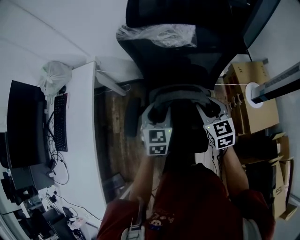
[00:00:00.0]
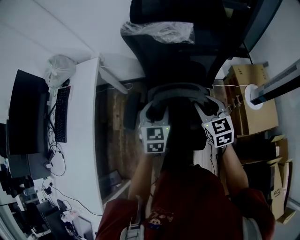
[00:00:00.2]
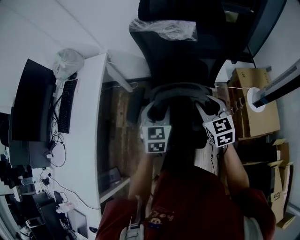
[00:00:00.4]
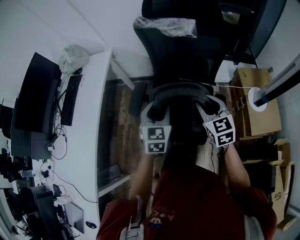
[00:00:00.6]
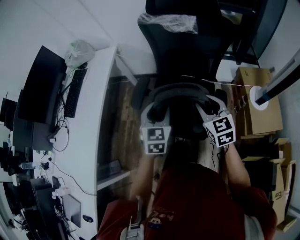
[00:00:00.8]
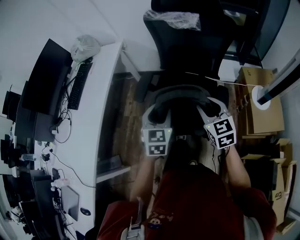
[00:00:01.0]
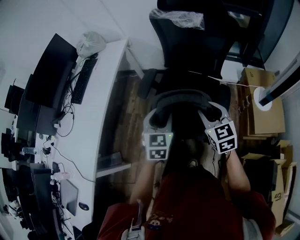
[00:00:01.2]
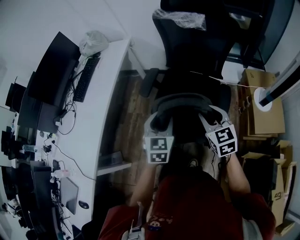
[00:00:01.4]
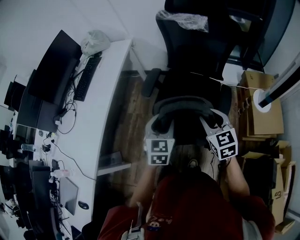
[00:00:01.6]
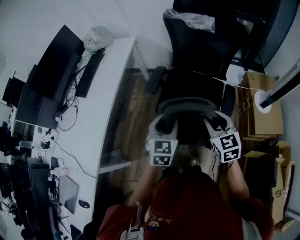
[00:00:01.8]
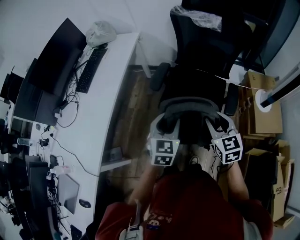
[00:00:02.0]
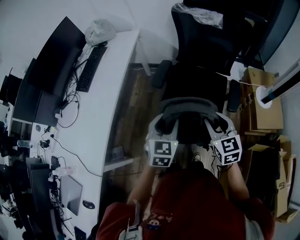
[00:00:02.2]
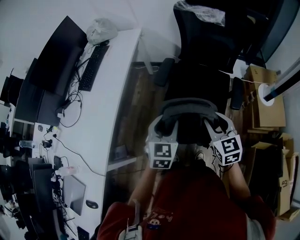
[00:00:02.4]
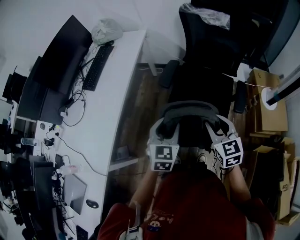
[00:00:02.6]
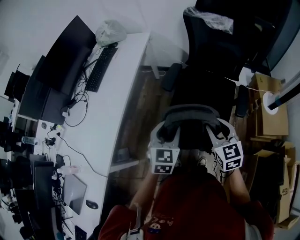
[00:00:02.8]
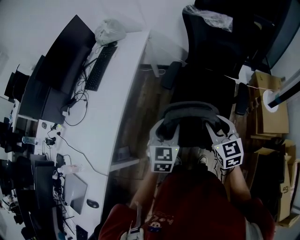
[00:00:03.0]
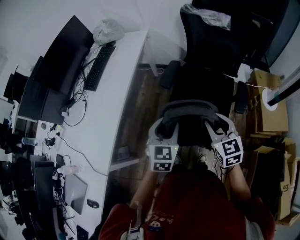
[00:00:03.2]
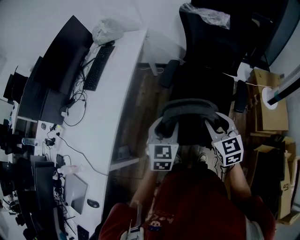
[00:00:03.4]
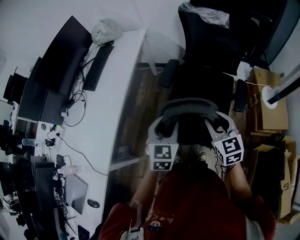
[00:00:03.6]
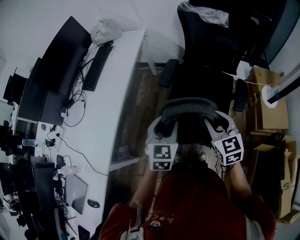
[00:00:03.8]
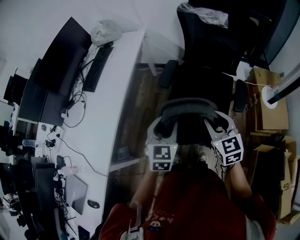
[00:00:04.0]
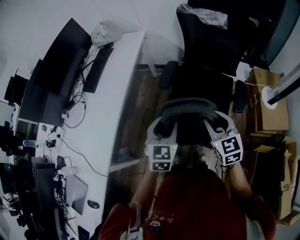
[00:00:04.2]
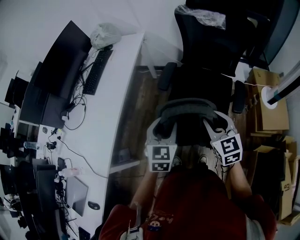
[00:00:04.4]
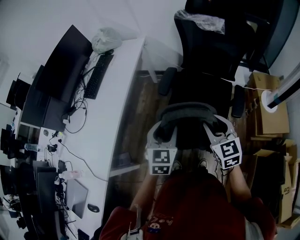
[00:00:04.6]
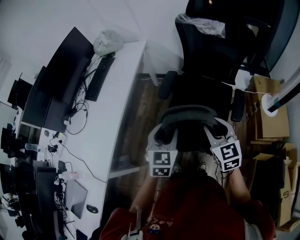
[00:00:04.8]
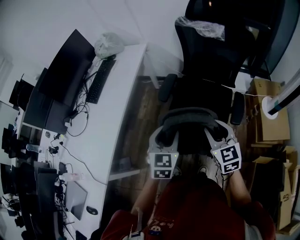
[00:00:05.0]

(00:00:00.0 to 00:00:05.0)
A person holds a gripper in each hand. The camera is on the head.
00:00:00.0 - 00:00:01.6: Both grippers move backward, approximately 35 cm.
00:00:01.6 - 00:00:03.4: Both grippers travel together to the left, roughly 15 cm.
00:00:03.4 - 00:00:05.0: The left gripper shifts by approximately 5 cm; the right gripper shifts by approximately 5 cm.

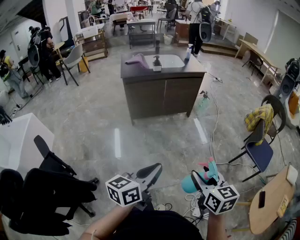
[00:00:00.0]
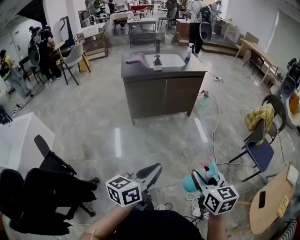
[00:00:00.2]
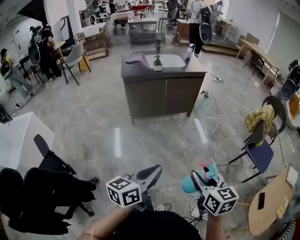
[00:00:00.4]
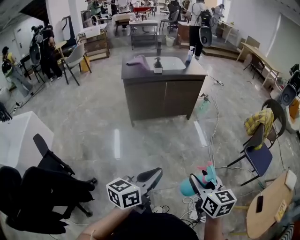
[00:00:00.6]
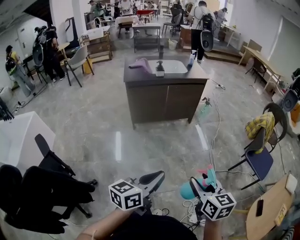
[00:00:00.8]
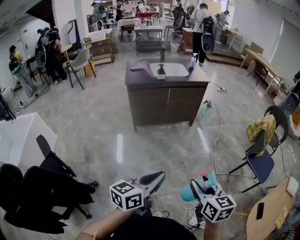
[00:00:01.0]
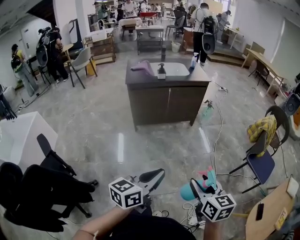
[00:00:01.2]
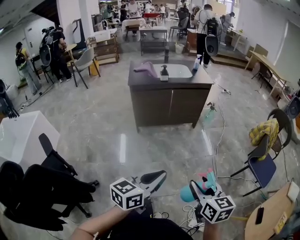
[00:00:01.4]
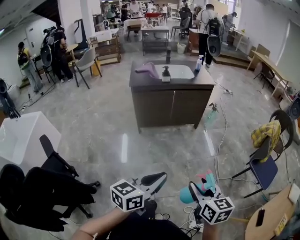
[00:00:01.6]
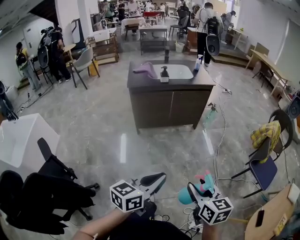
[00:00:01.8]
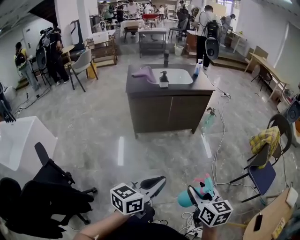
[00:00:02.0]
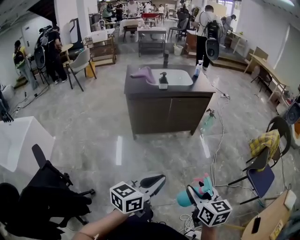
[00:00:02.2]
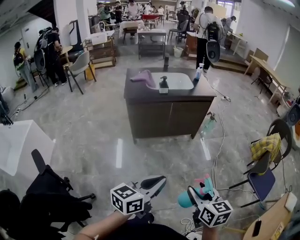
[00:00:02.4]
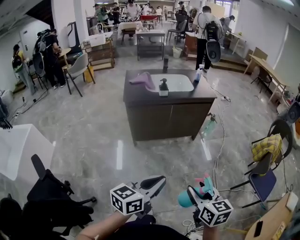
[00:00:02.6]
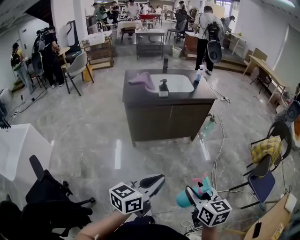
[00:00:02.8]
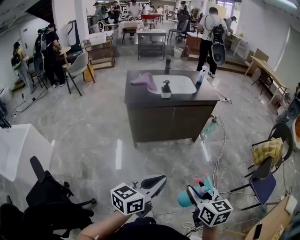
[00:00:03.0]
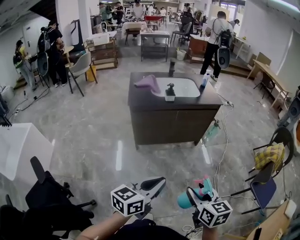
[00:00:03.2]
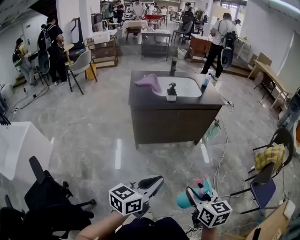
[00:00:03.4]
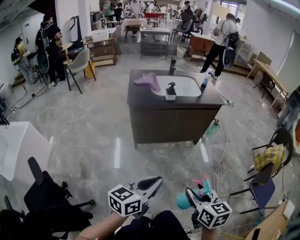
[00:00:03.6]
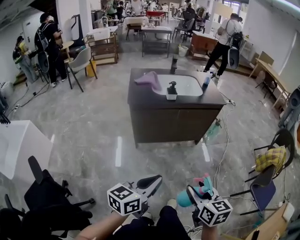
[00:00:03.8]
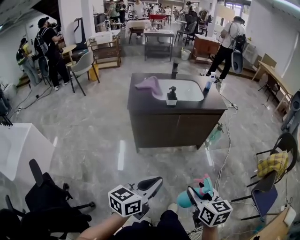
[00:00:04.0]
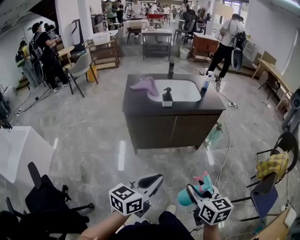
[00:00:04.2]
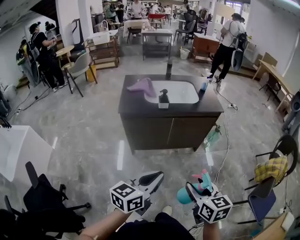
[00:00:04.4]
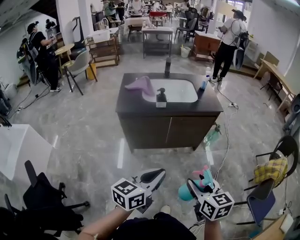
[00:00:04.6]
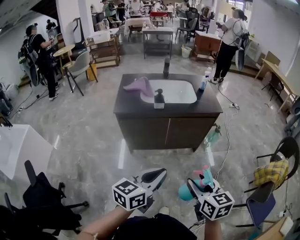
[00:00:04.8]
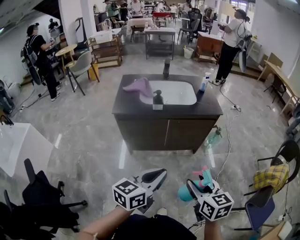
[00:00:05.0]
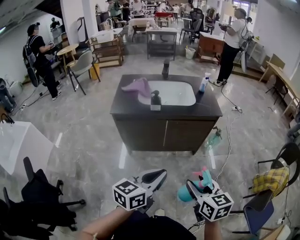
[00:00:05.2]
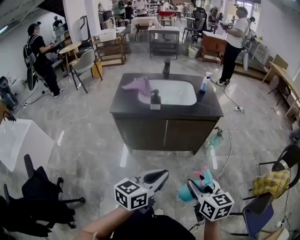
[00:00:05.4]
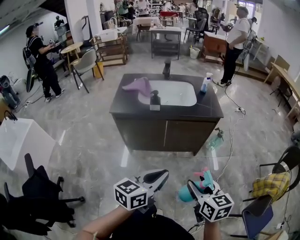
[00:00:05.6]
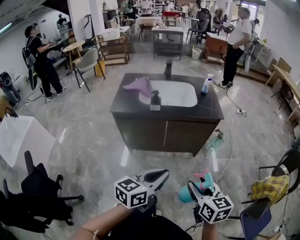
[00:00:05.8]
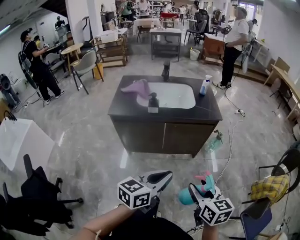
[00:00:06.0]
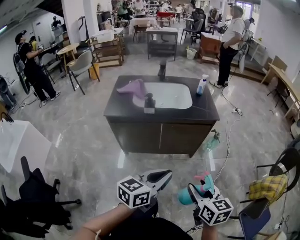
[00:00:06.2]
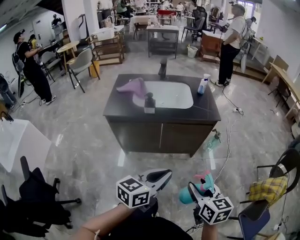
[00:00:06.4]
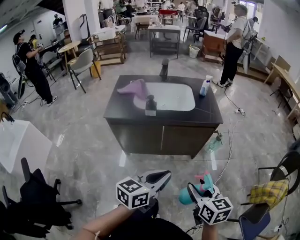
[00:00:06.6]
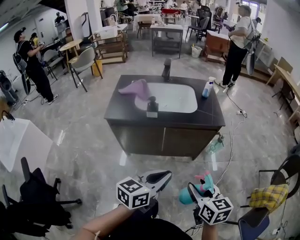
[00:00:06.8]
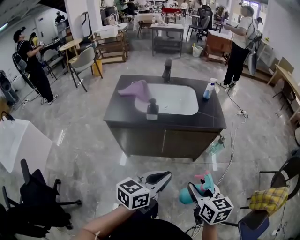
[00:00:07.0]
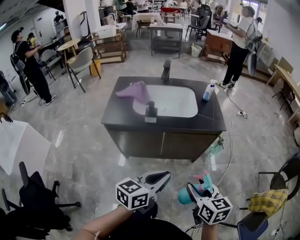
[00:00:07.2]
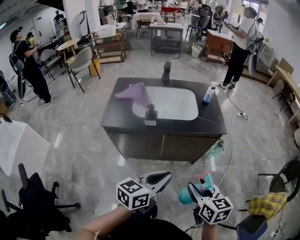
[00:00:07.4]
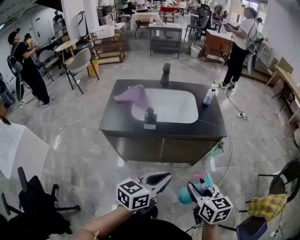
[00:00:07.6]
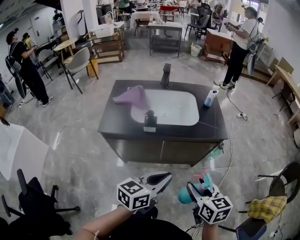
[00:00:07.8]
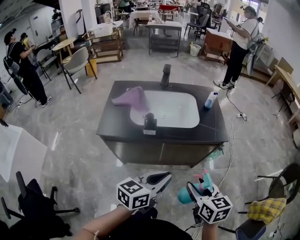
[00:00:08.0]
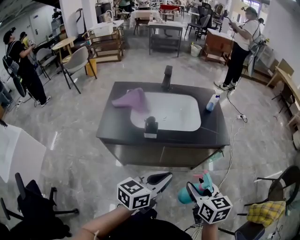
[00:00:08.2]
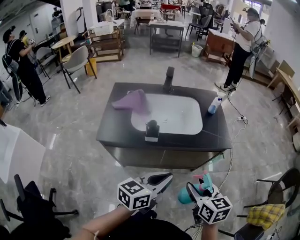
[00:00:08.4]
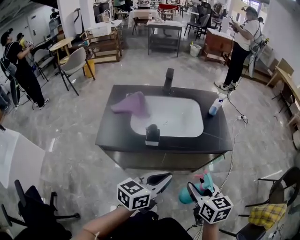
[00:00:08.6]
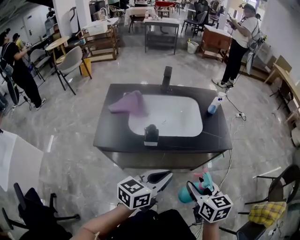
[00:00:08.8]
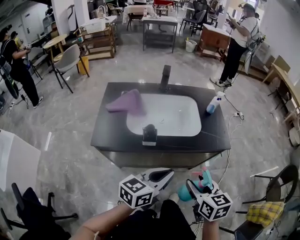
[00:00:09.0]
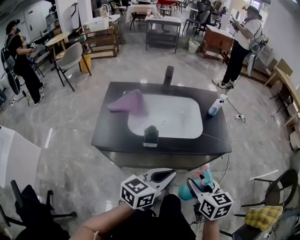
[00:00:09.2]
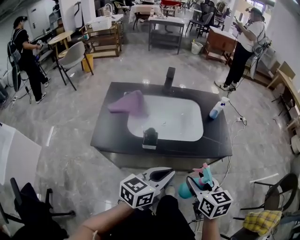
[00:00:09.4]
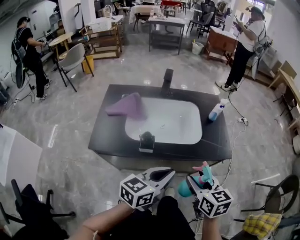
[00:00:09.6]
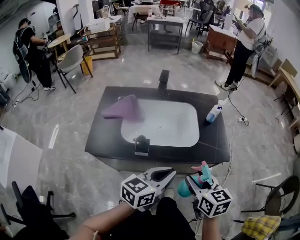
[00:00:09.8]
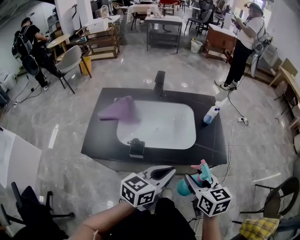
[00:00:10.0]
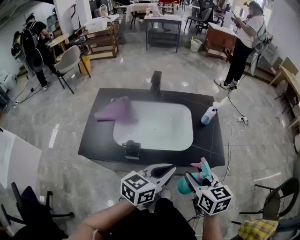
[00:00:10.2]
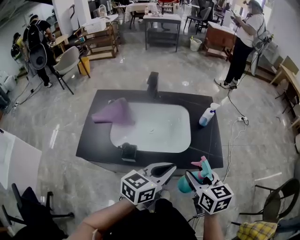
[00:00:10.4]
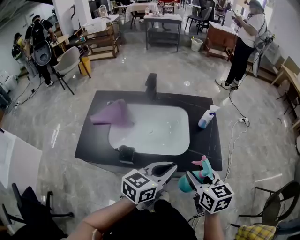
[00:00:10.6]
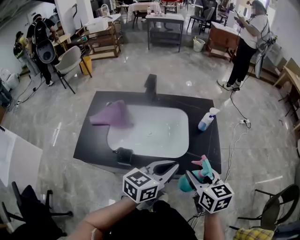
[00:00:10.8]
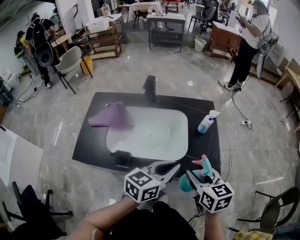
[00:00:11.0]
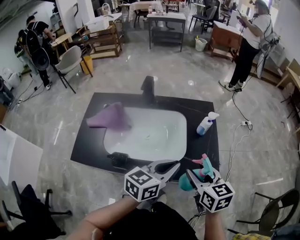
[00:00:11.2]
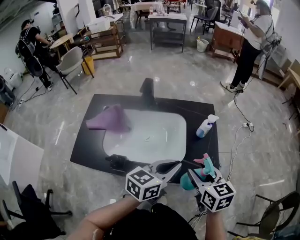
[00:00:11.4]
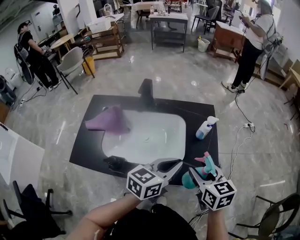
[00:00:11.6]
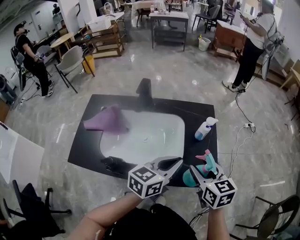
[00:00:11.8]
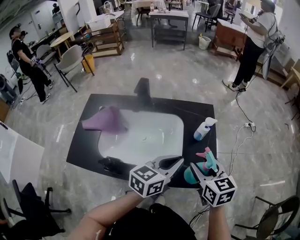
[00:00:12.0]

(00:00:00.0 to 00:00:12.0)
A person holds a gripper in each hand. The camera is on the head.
00:00:00.0 - 00:00:01.6: There are only small adjustments of the grippers.
00:00:01.6 - 00:00:03.0: Both grippers move forward and to the left, roughly 20 cm.
00:00:03.0 - 00:00:04.4: Both grippers move forward, about 15 cm.
00:00:04.4 - 00:00:06.0: Both grippers move to the right and forward, roughly 15 cm.
00:00:06.0 - 00:00:07.6: Both grippers travel together forward, some 15 cm.
00:00:07.6 - 00:00:09.0: Both grippers move forward and to the left, roughly 15 cm.
00:00:09.0 - 00:00:10.4: The right gripper travels forward by roughly 15 cm, while the left gripper is displaced forward and to the right by roughly 15 cm.
00:00:10.4 - 00:00:12.0: The left gripper heads forward and to the right, covering about 15 cm; the right gripper shifts about 15 cm forward.

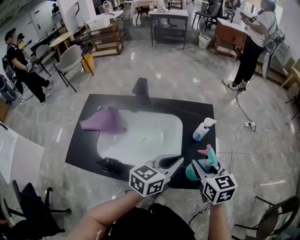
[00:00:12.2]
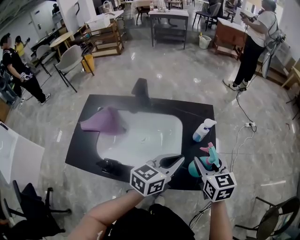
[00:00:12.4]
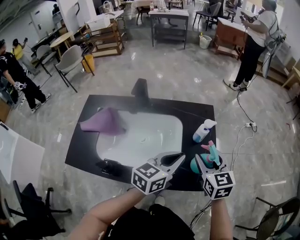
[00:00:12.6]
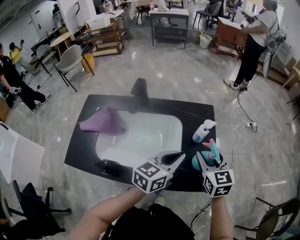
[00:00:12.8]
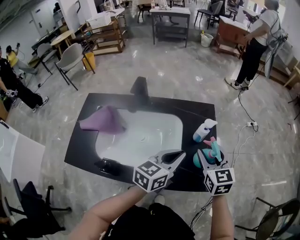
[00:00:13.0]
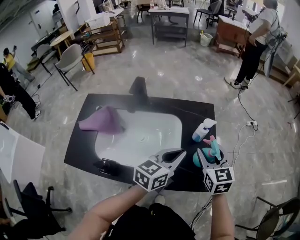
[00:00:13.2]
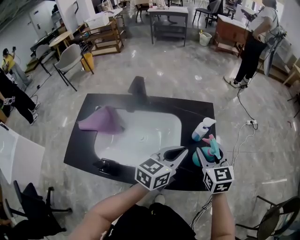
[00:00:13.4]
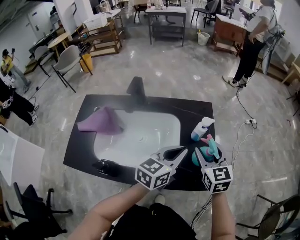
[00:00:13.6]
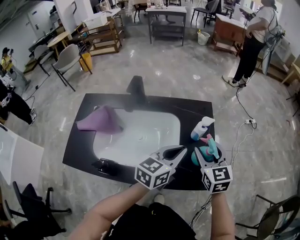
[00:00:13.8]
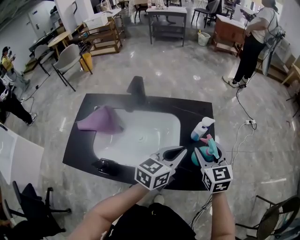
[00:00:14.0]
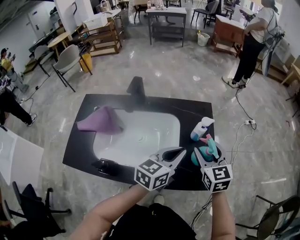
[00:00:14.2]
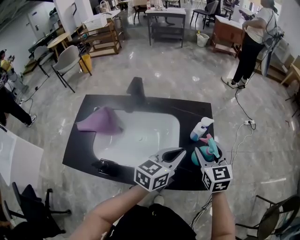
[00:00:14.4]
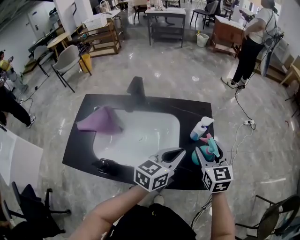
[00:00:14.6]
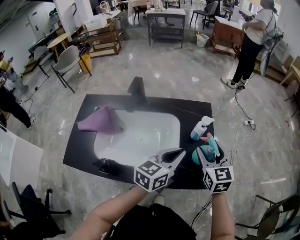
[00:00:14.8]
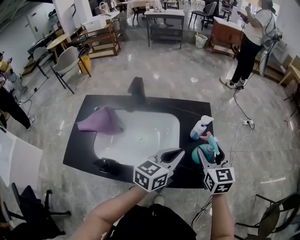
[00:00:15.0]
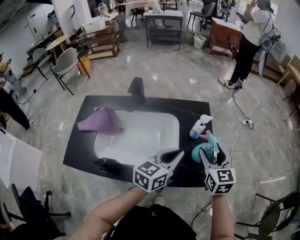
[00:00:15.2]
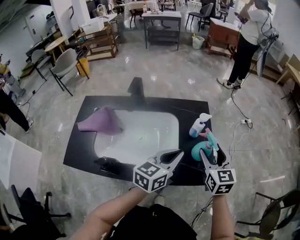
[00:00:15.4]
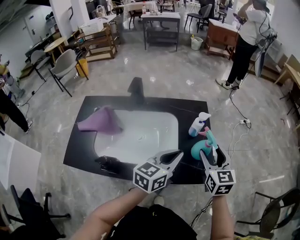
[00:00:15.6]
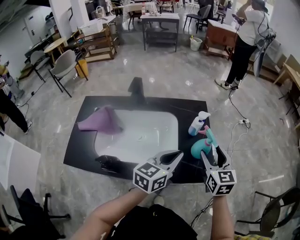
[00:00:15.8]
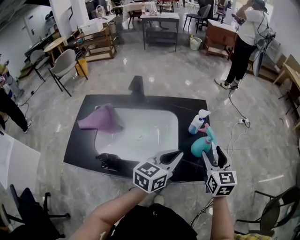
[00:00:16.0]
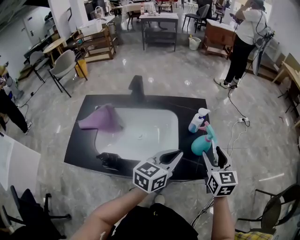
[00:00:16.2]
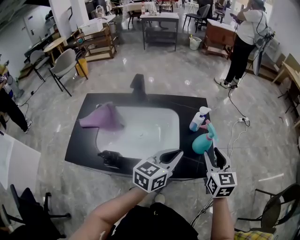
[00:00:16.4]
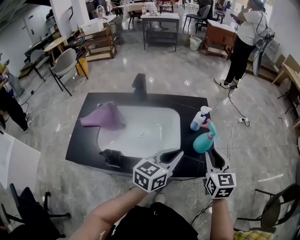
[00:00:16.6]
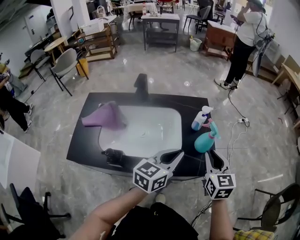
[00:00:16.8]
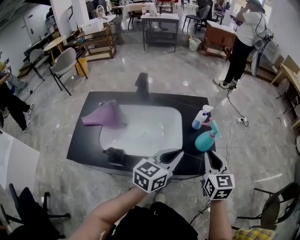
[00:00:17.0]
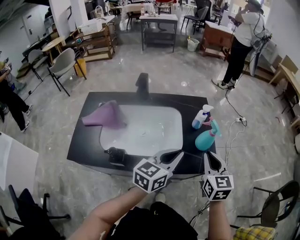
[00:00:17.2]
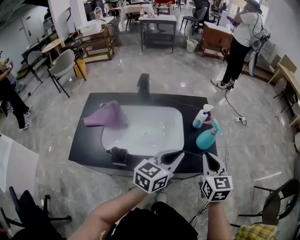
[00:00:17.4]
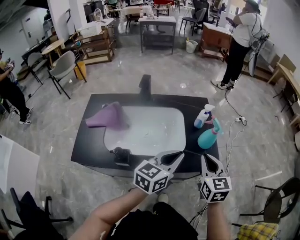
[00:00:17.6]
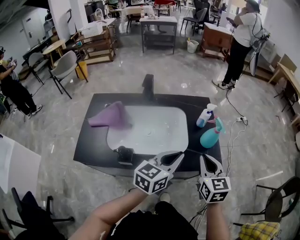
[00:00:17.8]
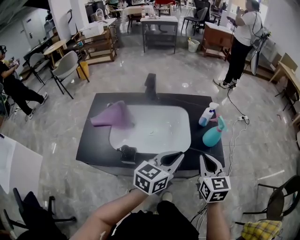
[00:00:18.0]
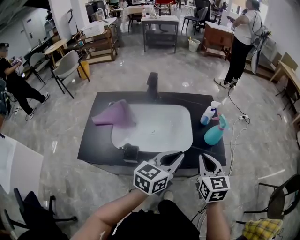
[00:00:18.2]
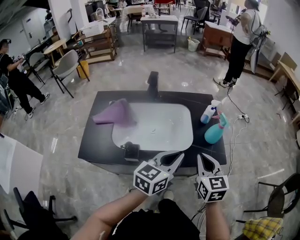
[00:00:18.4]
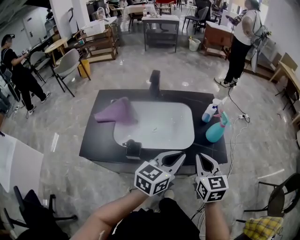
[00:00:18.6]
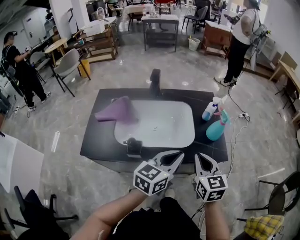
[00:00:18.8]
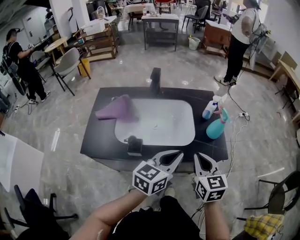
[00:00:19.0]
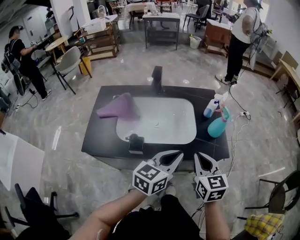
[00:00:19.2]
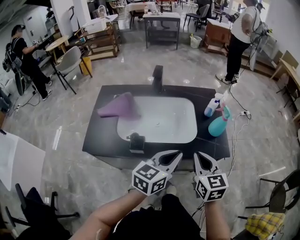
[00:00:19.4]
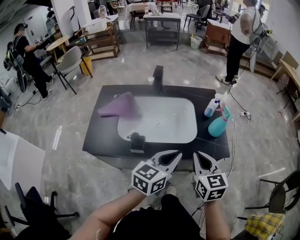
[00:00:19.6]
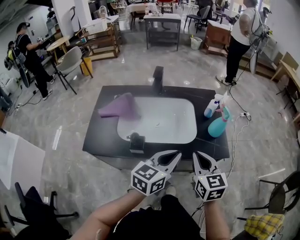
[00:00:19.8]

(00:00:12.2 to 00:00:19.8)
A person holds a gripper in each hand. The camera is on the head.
00:00:12.2 - 00:00:13.8: The grippers both shift forward by roughly 5 cm.
00:00:13.8 - 00:00:15.2: The grippers make only small movements.
00:00:15.2 - 00:00:16.8: Both grippers travel together backward, about 10 cm. The right gripper closes up.
00:00:16.8 - 00:00:18.2: The right gripper heads backward and to the left, covering roughly 10 cm. Meanwhile the left gripper travels backward by roughly 5 cm.
00:00:18.2 - 00:00:19.8: Both grippers move backward, some 5 cm.
